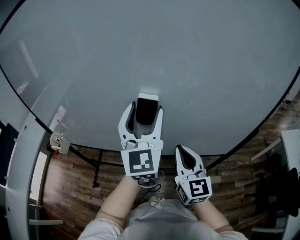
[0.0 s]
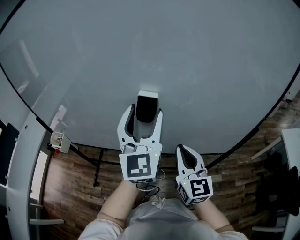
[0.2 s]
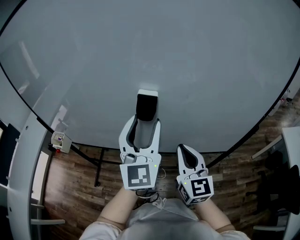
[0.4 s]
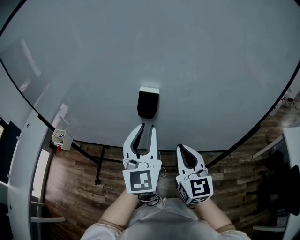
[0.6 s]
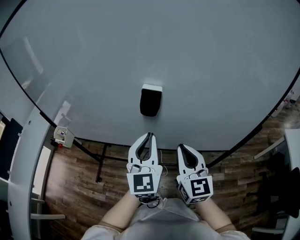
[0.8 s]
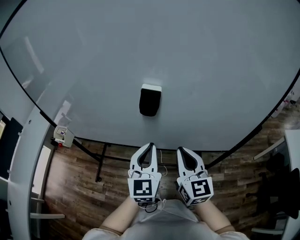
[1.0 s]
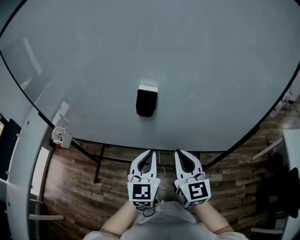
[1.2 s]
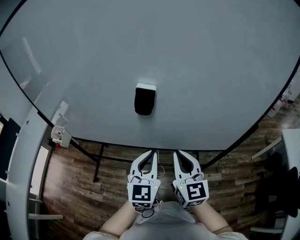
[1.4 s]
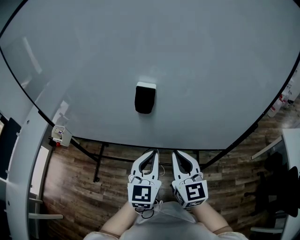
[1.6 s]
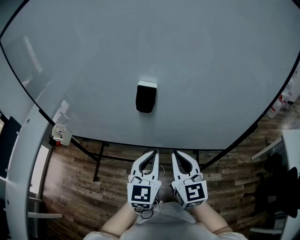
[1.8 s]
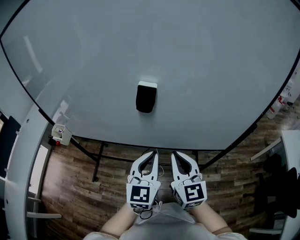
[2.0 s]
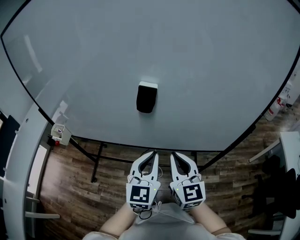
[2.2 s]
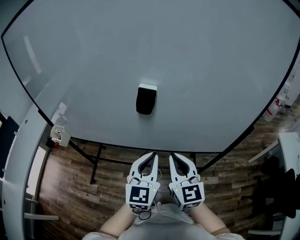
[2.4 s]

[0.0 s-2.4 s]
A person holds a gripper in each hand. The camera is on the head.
0.0 to 1.2 s: The left gripper goes approximately 20 cm downward and backward, and closes its fingers.
1.2 to 2.4 s: The grippers move only a little.

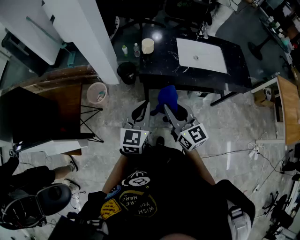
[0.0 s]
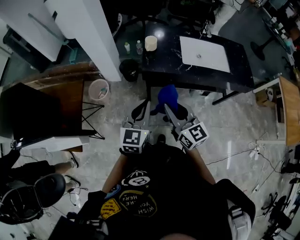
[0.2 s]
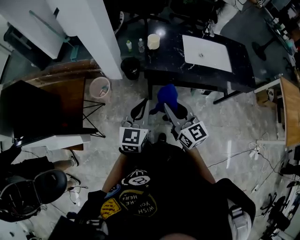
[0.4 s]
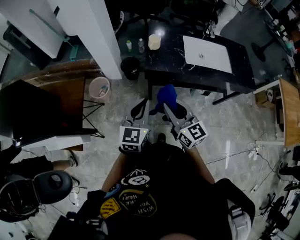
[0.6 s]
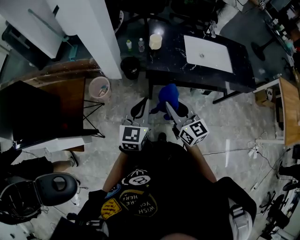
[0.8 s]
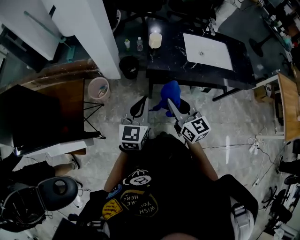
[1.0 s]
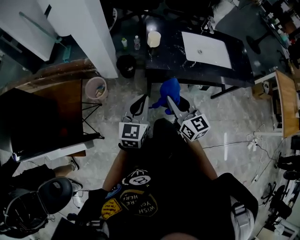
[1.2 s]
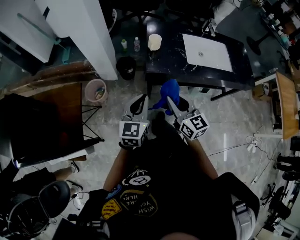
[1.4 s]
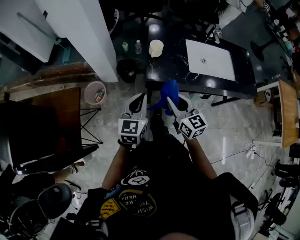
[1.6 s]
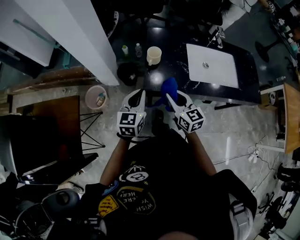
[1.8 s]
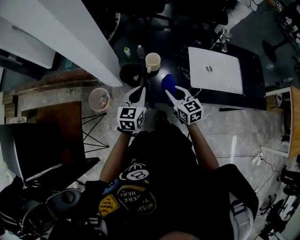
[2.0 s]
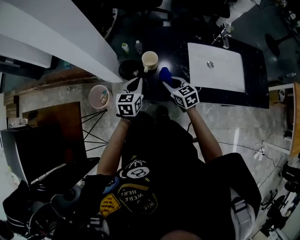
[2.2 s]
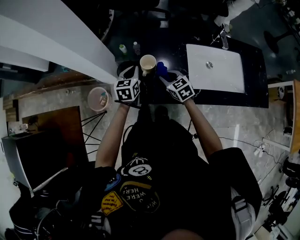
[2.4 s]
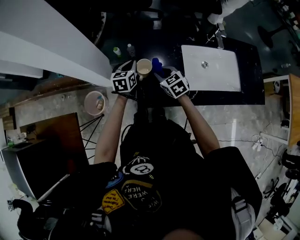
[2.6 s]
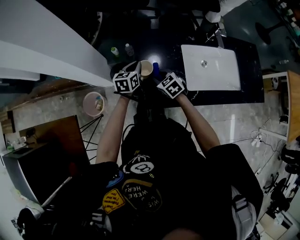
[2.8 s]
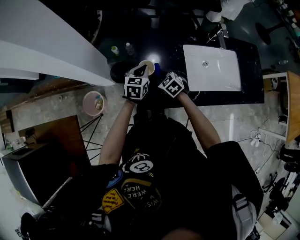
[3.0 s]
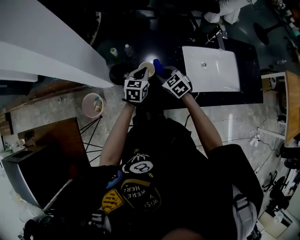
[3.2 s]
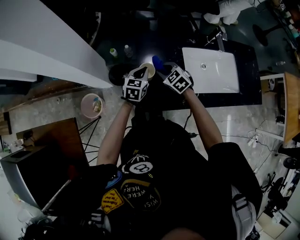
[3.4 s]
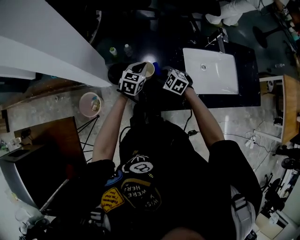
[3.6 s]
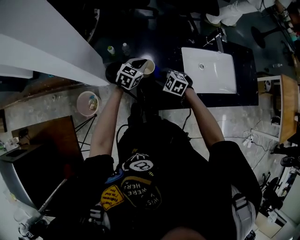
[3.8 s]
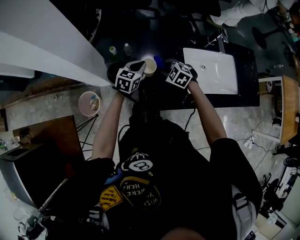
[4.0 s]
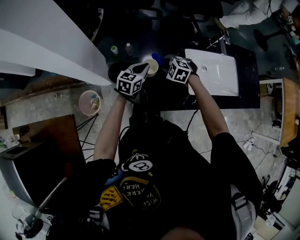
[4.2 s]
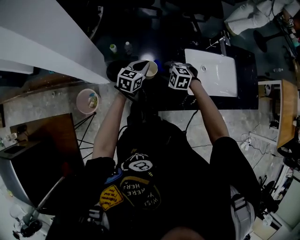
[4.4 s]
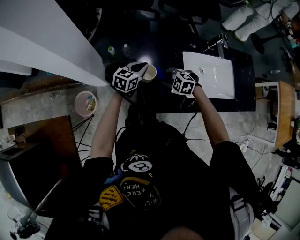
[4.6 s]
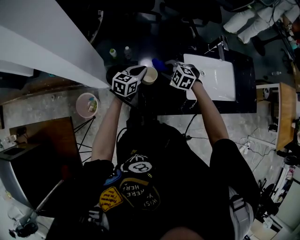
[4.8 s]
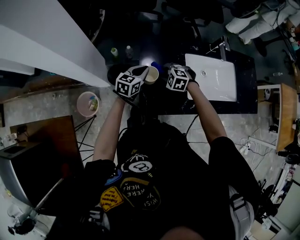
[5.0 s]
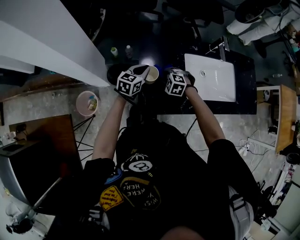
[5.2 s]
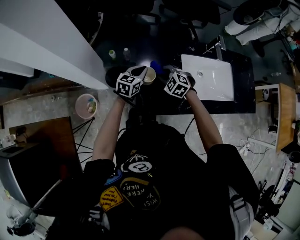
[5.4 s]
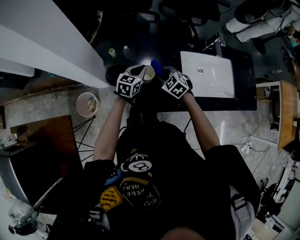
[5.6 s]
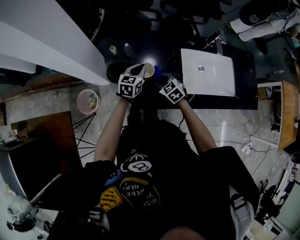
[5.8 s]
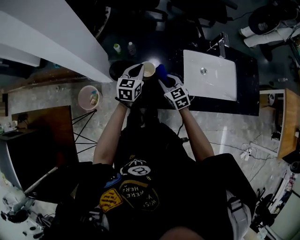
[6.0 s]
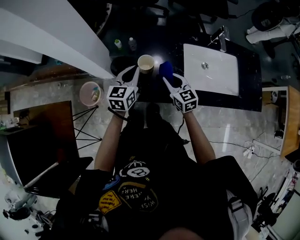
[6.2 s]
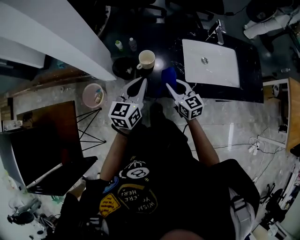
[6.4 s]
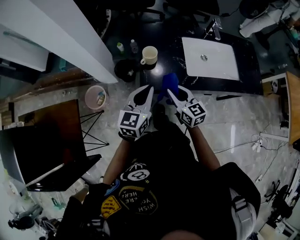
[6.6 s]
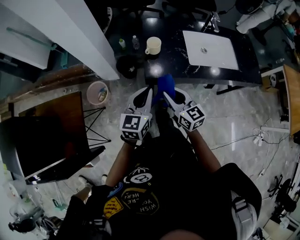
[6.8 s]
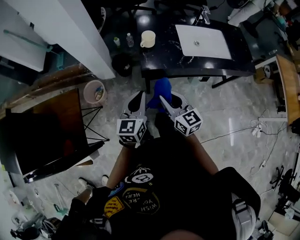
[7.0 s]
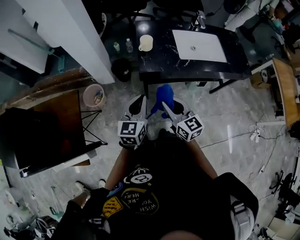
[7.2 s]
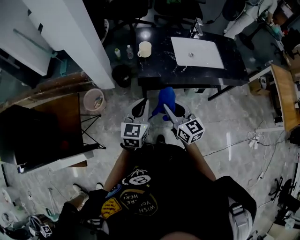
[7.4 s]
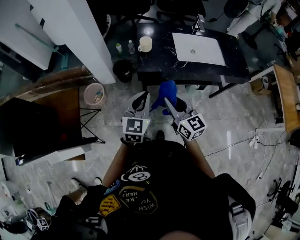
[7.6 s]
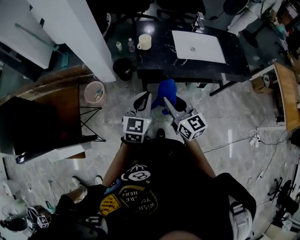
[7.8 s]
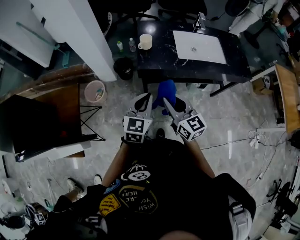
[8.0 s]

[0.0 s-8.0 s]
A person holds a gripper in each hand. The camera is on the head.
0.0 to 1.6 s: The right gripper shifts about 15 cm forward and downward, while the left gripper travels forward, downward and to the left by roughly 15 cm.
1.6 to 3.2 s: Both grippers travel together forward and downward, some 35 cm. The right gripper points its fingers roughly 30 degrees further downward.
3.2 to 4.8 s: The right gripper goes forward and backward, some 5 cm each way, reversing 2 times, and turns by roughly 40 degrees.
4.8 to 6.4 s: The right gripper moves backward, approximately 15 cm, and tilts its fingers approximately 40 degrees upward; the left gripper is displaced backward and upward by some 20 cm, and changes its angle by some 20 degrees.
6.4 to 8.0 s: The right gripper goes approximately 35 cm backward and upward, while the left gripper is displaced backward by some 30 cm.

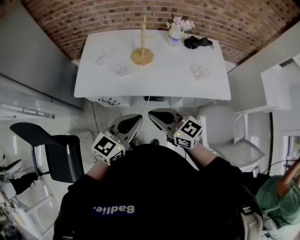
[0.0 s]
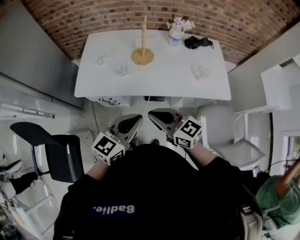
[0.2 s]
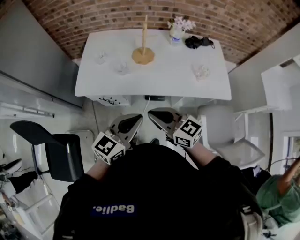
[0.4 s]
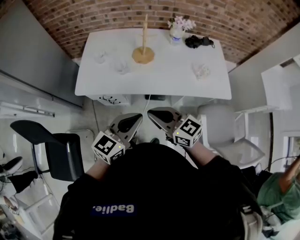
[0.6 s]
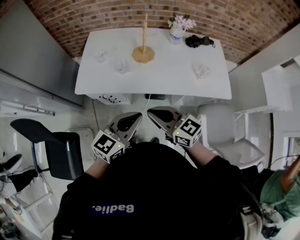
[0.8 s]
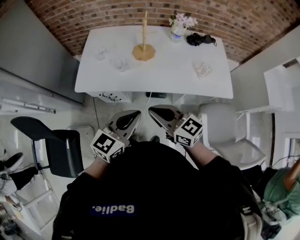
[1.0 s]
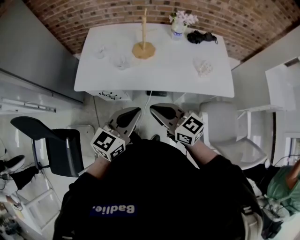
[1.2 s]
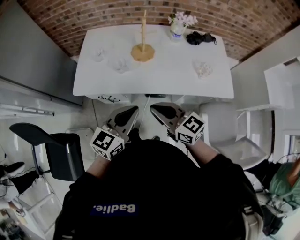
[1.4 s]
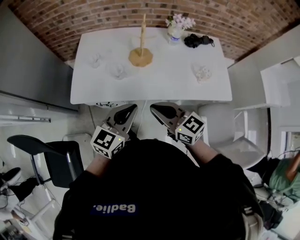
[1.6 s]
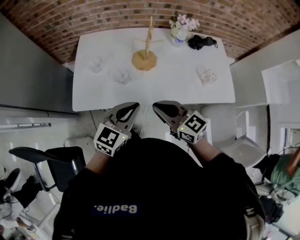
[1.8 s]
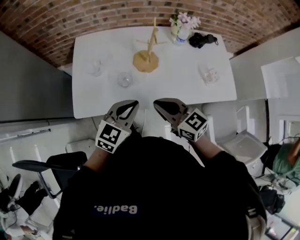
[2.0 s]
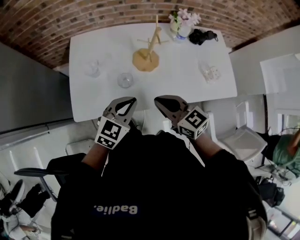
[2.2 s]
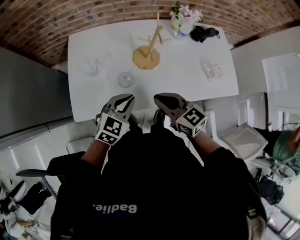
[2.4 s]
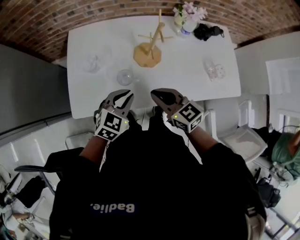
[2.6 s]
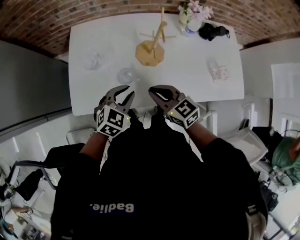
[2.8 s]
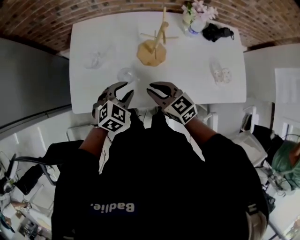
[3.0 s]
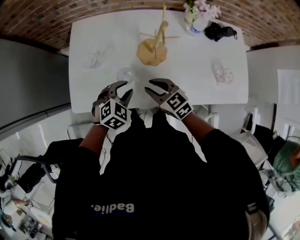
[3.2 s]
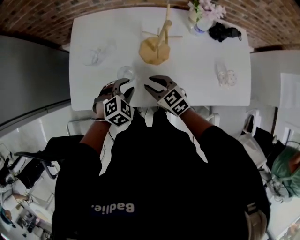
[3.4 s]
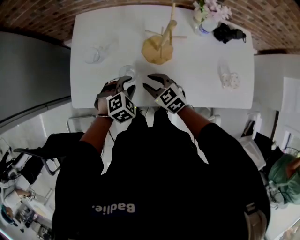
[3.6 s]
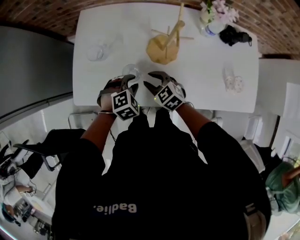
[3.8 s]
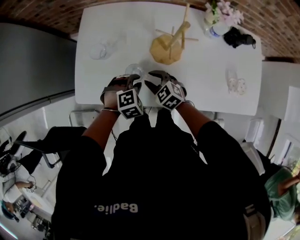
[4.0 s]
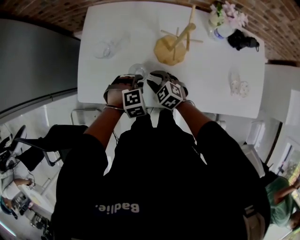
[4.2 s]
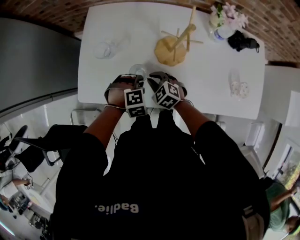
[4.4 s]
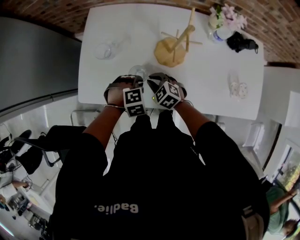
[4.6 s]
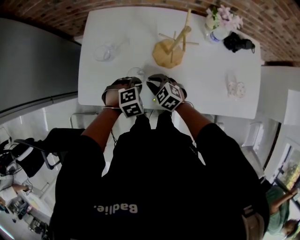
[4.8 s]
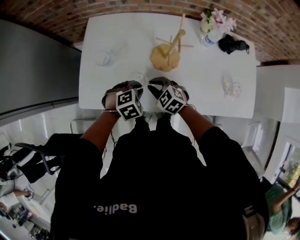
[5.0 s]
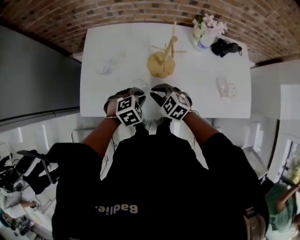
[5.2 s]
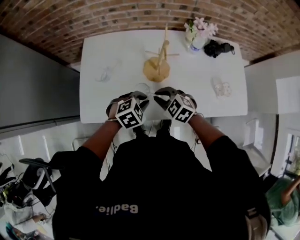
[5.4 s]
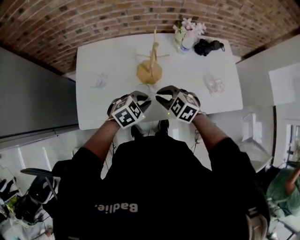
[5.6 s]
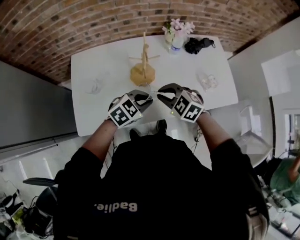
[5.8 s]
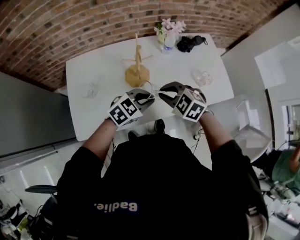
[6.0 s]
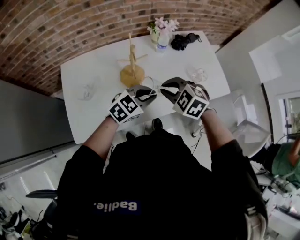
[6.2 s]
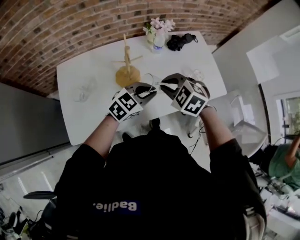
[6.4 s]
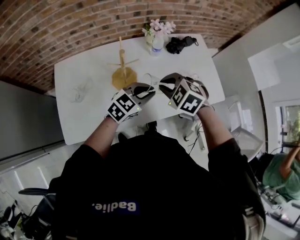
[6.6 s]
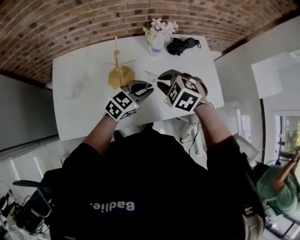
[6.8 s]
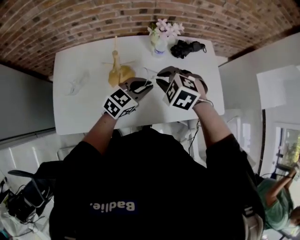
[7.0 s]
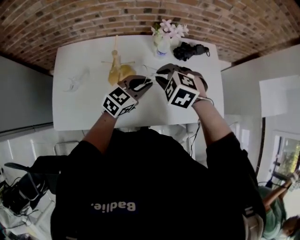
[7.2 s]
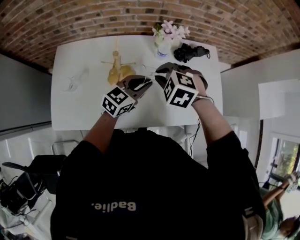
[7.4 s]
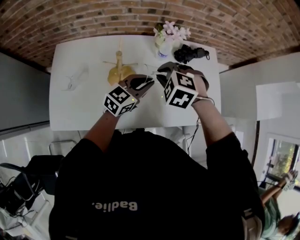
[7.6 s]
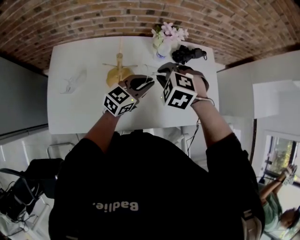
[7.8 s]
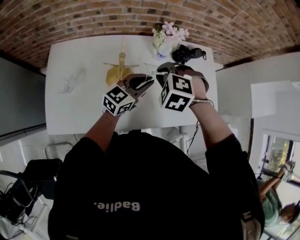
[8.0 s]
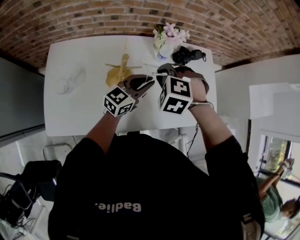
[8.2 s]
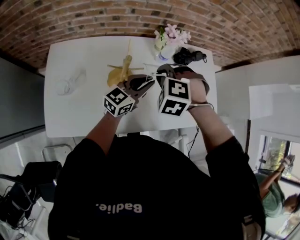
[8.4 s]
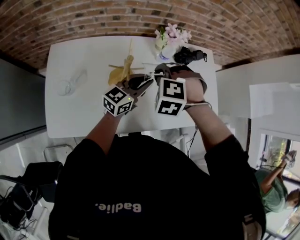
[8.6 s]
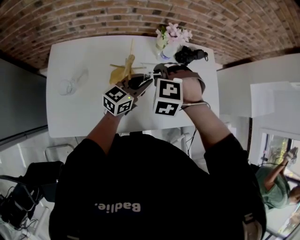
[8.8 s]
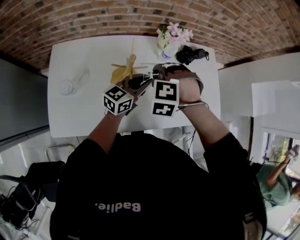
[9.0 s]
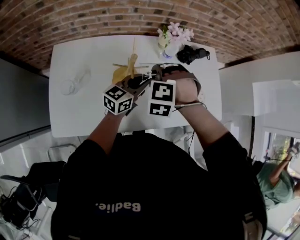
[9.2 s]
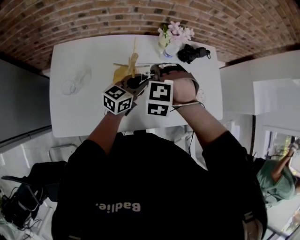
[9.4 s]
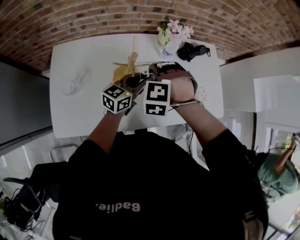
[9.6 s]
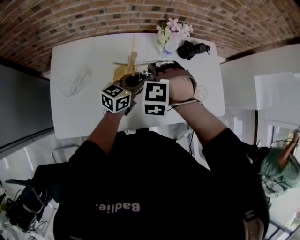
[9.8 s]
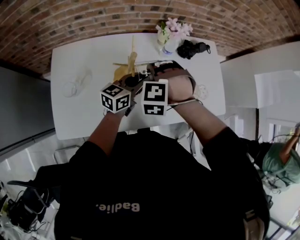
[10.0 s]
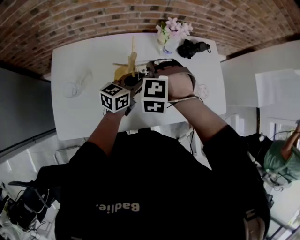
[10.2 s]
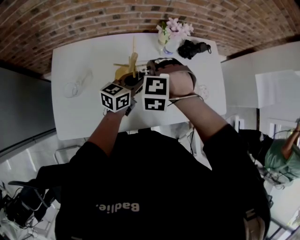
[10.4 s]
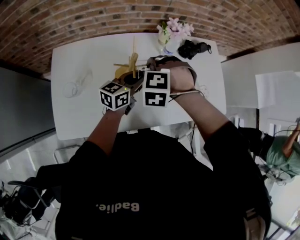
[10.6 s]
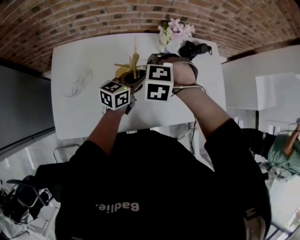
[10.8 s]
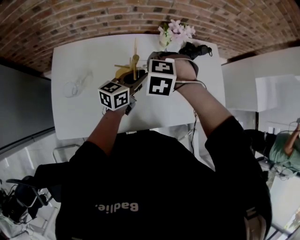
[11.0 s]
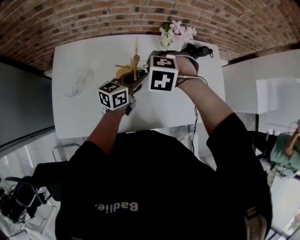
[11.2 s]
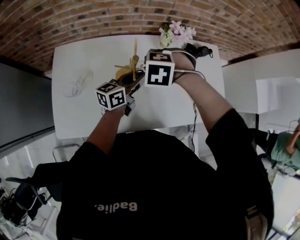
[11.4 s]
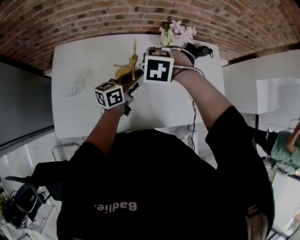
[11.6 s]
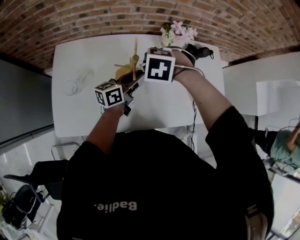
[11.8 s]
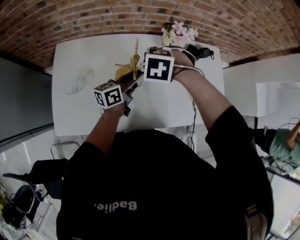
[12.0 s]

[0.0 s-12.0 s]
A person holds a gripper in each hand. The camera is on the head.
0.0 to 1.6 s: Both grippers move forward, approximately 10 cm.
1.6 to 3.0 s: Both grippers travel together forward and downward, some 25 cm. The left gripper angles its fingers downward, by roughly 40 degrees, and opens its fingers.
3.0 to 4.4 s: The right gripper is displaced downward and forward by about 15 cm, and rotates some 30 degrees. The left gripper travels downward by approximately 10 cm, and rotates about 40 degrees.
4.4 to 6.0 s: The two grippers go roughly 20 cm upward. The left gripper points its fingers about 40 degrees further upward.
6.0 to 7.6 s: The left gripper is displaced forward and to the right by approximately 15 cm, and changes its angle by roughly 30 degrees. Meanwhile the right gripper heads forward, covering roughly 15 cm, and changes its angle by about 30 degrees.
7.6 to 9.0 s: Both grippers travel together to the left, roughly 5 cm. The right gripper changes its angle by some 20 degrees.
9.0 to 10.4 s: The grippers stay close to where they were, moving slightly.
10.4 to 12.0 s: The left gripper turns by some 20 degrees; the right gripper changes its angle by approximately 20 degrees.

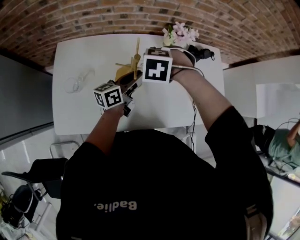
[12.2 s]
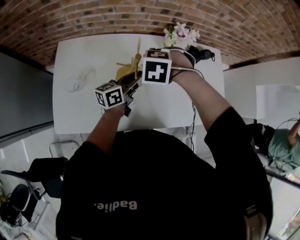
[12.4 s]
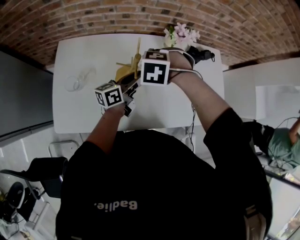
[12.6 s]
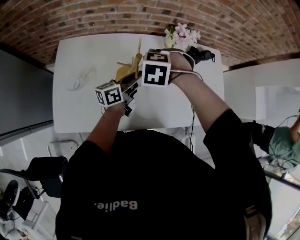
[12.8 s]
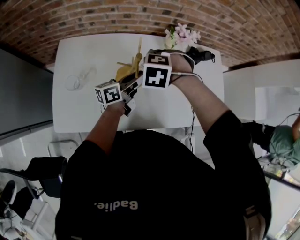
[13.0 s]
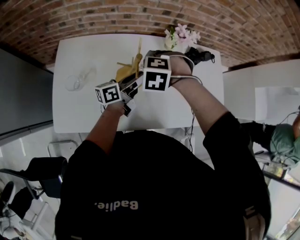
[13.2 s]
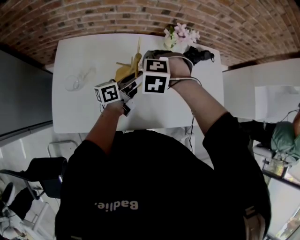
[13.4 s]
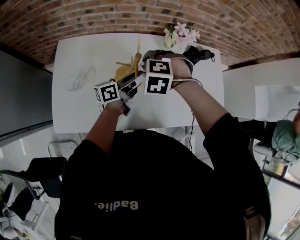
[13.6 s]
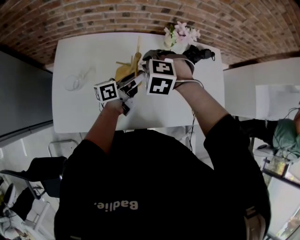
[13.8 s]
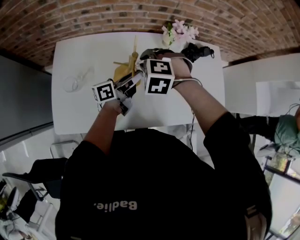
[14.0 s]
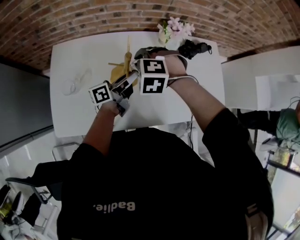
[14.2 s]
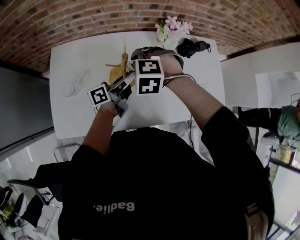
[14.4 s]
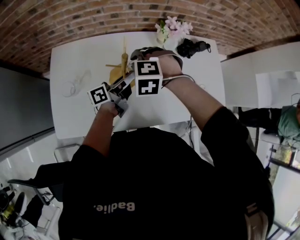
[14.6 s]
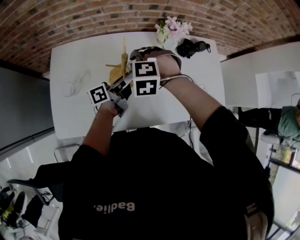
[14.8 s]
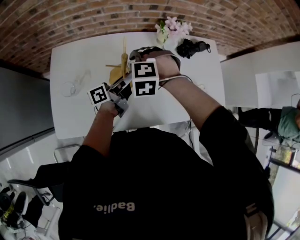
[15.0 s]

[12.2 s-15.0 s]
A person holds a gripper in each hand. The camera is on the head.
12.2 to 13.6 s: There are only small adjustments of the grippers.
13.6 to 15.0 s: There are only small adjustments of the grippers.
